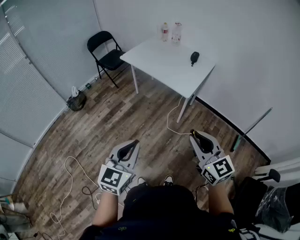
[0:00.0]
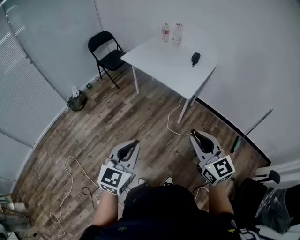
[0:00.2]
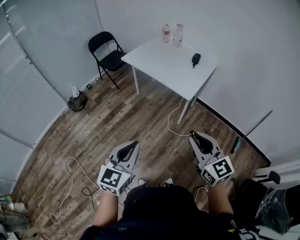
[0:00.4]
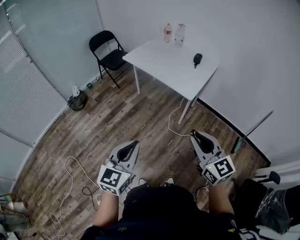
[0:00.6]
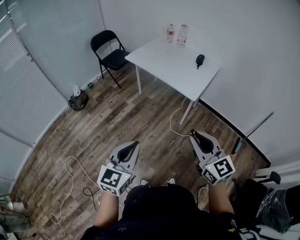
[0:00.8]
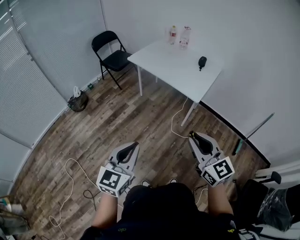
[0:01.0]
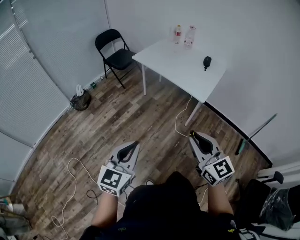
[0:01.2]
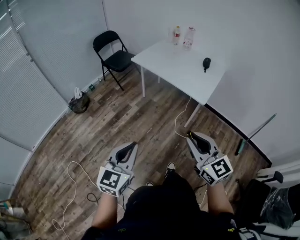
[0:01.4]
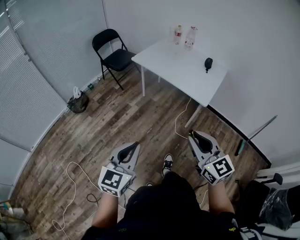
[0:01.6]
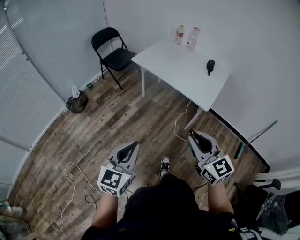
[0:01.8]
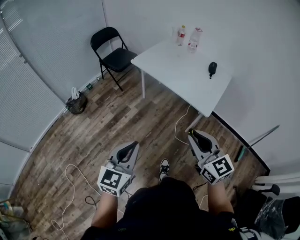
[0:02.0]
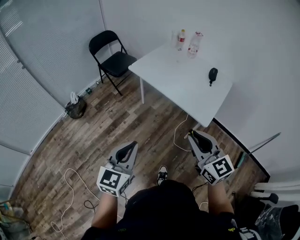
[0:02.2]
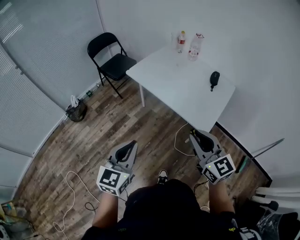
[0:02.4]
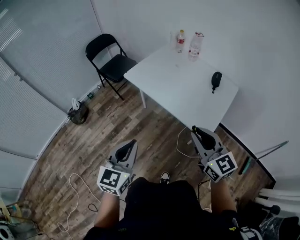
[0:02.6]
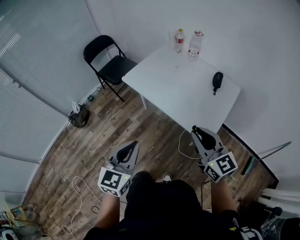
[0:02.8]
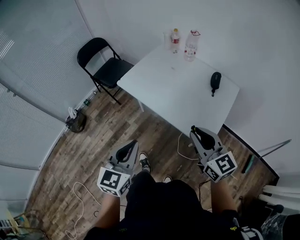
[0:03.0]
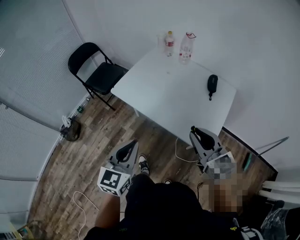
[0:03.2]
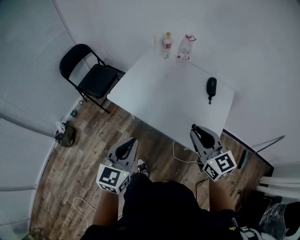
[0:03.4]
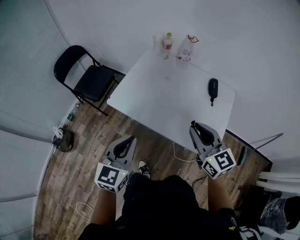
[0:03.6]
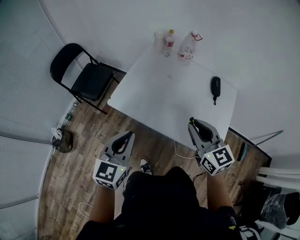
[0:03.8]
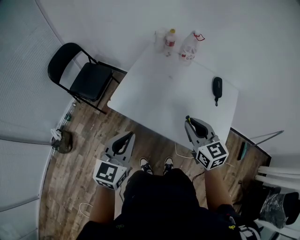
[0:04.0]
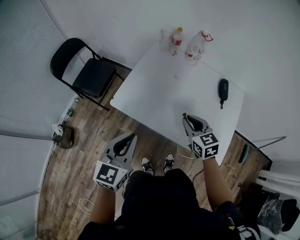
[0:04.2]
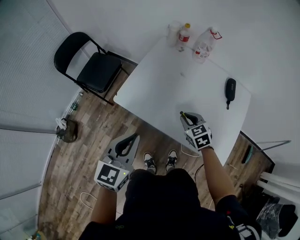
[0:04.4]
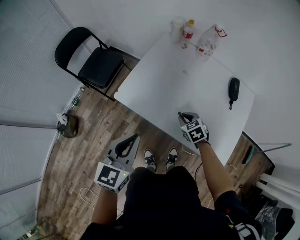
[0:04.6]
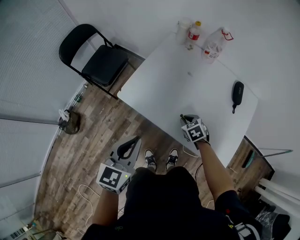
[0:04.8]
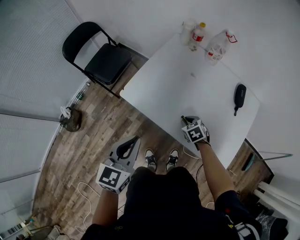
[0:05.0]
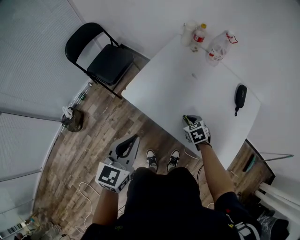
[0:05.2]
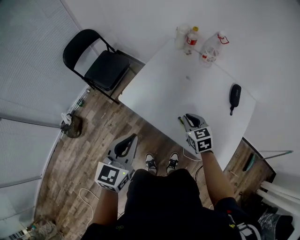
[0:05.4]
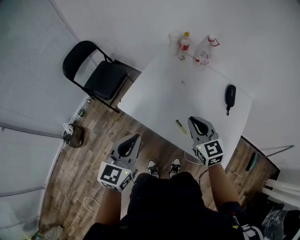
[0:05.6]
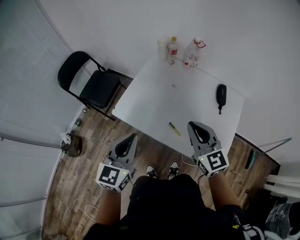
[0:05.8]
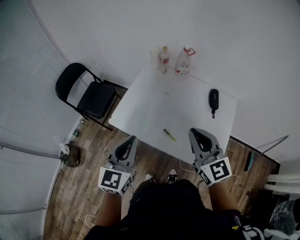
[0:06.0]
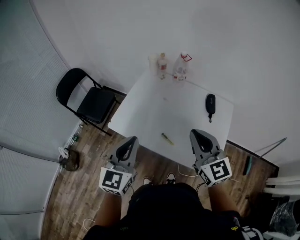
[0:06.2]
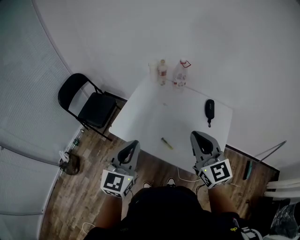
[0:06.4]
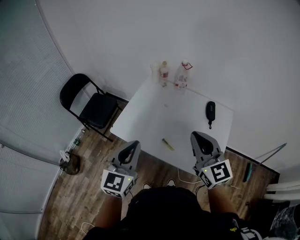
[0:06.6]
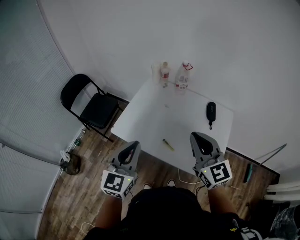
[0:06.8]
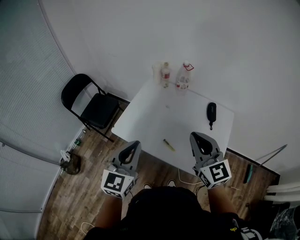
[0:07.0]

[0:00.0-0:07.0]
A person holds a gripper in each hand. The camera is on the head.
0:00.0 to 0:01.4: The two grippers go about 15 cm to the left.
0:01.4 to 0:02.8: The pair of grippers is taken forward, approximately 40 cm.
0:02.8 to 0:04.2: The right gripper moves forward and downward, roughly 35 cm, and changes its angle by about 30 degrees, while the left gripper is displaced forward by roughly 35 cm.
0:04.2 to 0:05.6: The right gripper moves roughly 20 cm downward and comes back.
0:05.6 to 0:07.0: The left gripper heads upward and to the right, covering roughly 10 cm, while the right gripper moves upward and backward, roughly 20 cm.

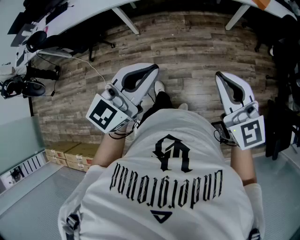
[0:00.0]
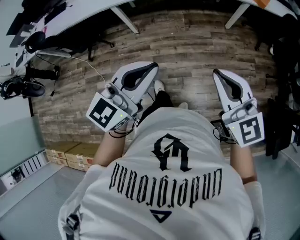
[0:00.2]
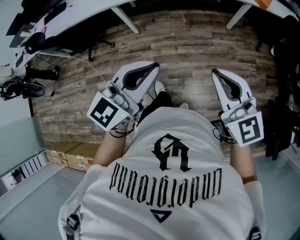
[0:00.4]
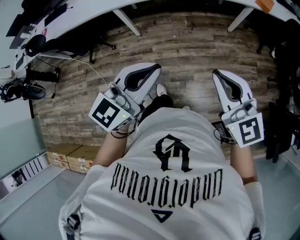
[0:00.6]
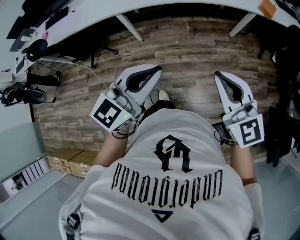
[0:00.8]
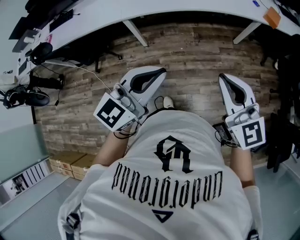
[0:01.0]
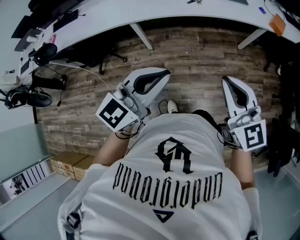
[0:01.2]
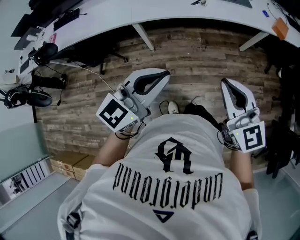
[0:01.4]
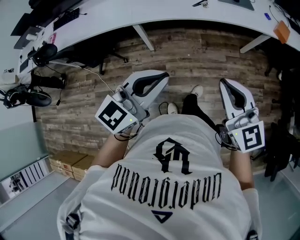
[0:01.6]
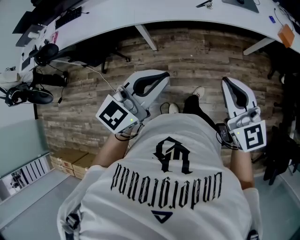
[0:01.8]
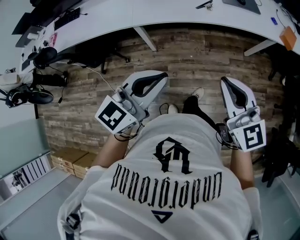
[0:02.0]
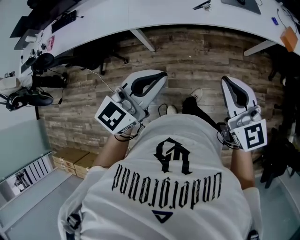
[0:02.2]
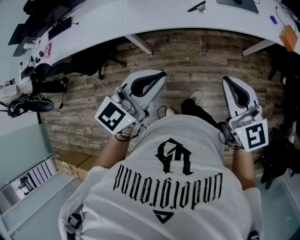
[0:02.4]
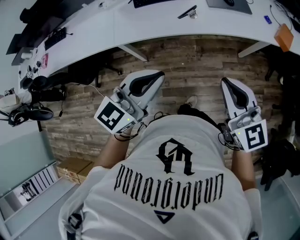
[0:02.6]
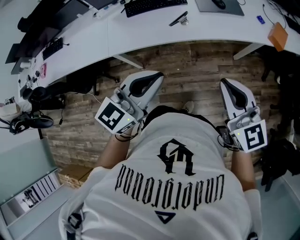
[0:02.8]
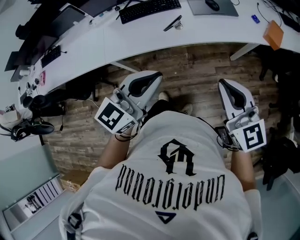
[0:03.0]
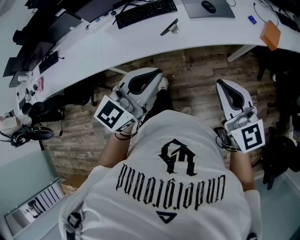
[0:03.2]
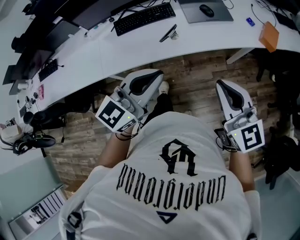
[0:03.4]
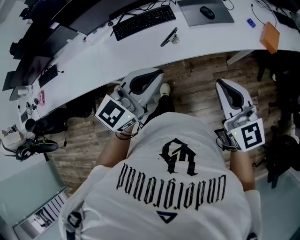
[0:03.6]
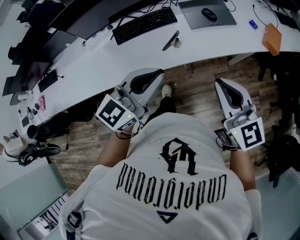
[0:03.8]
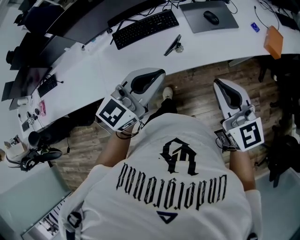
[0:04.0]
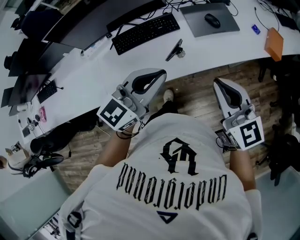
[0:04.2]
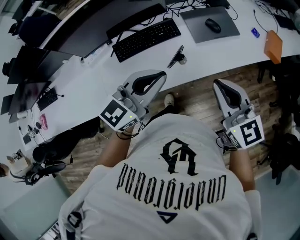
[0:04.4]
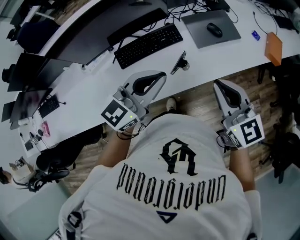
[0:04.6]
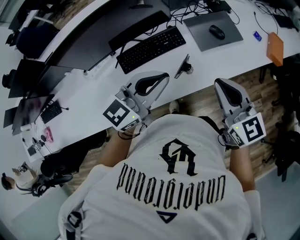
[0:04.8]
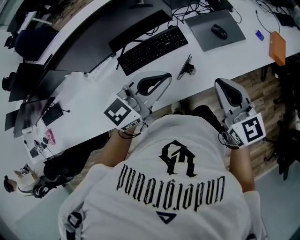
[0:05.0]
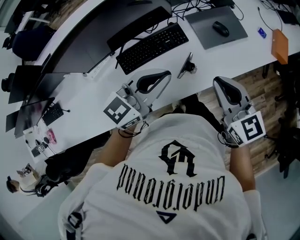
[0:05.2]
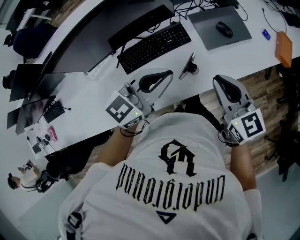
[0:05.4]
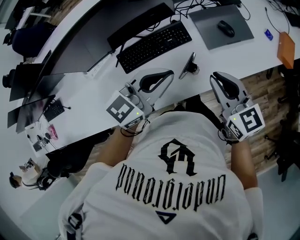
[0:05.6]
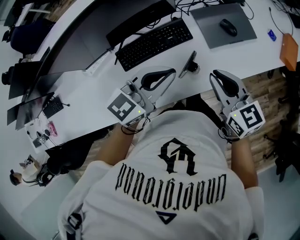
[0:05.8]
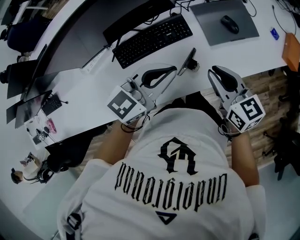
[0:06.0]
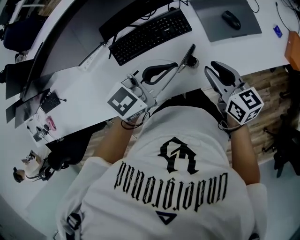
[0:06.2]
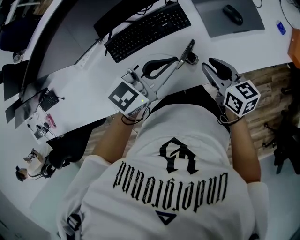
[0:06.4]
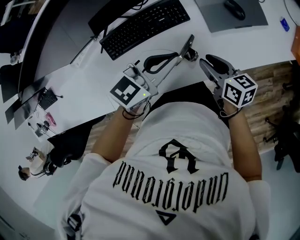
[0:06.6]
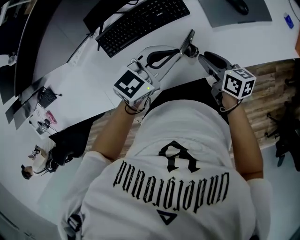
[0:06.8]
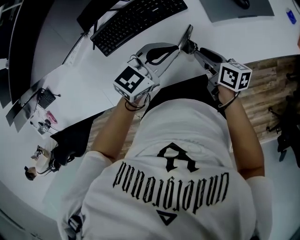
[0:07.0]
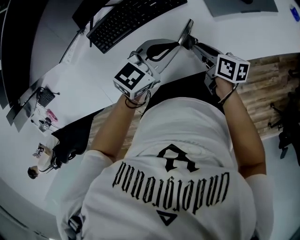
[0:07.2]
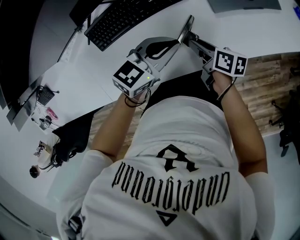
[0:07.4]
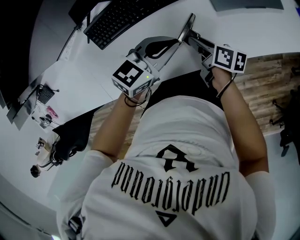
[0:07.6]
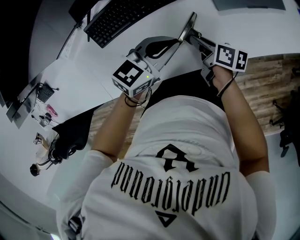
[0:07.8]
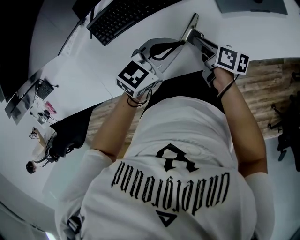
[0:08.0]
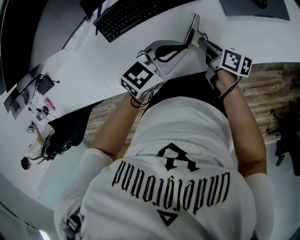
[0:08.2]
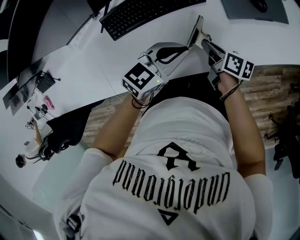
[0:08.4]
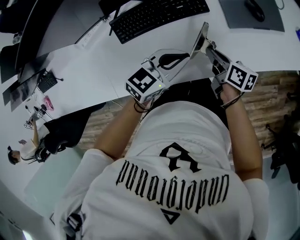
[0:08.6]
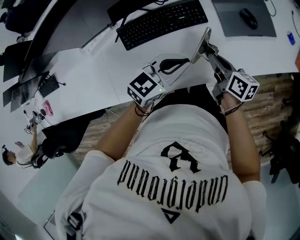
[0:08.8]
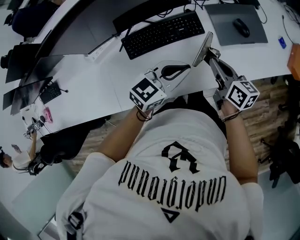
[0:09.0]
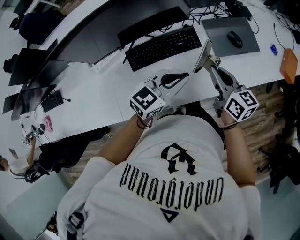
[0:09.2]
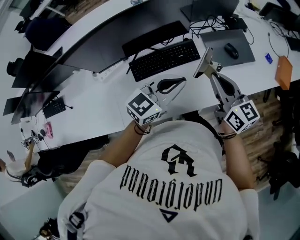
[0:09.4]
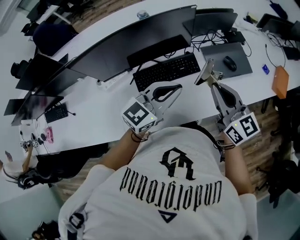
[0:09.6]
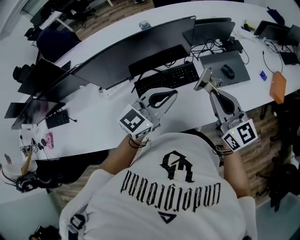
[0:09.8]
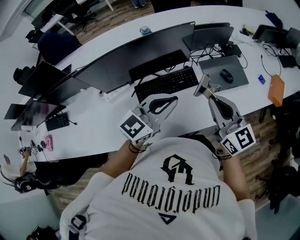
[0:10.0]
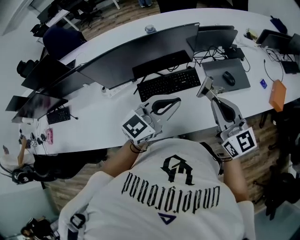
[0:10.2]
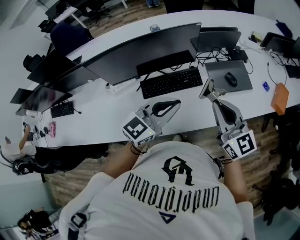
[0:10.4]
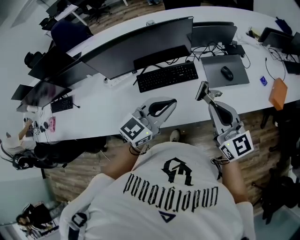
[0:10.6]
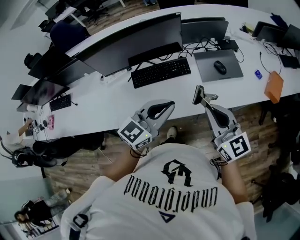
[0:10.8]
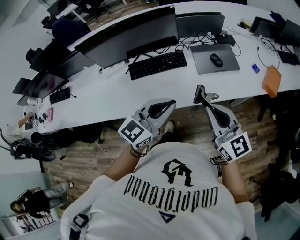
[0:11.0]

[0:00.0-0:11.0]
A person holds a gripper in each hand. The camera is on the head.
0:00.0 to 0:01.6: The two grippers go roughly 25 cm forward and to the left.
0:01.6 to 0:03.2: Both grippers move forward and to the right, some 30 cm.
0:03.2 to 0:04.8: The two grippers go about 30 cm forward and to the left.
0:04.8 to 0:06.2: The right gripper is displaced downward and forward by roughly 20 cm, and swivels some 30 degrees, while the left gripper is displaced forward and downward by roughly 15 cm.
0:06.2 to 0:07.8: The grippers both shift downward by approximately 20 cm. The right gripper twists some 40 degrees clockwise, seen from behind.
0:07.8 to 0:09.4: The right gripper shifts approximately 35 cm upward, and twists roughly 50 degrees counterclockwise, seen from behind, while the left gripper travels upward by about 25 cm, and rotates roughly 30 degrees.
0:09.4 to 0:11.0: The grippers both shift backward and to the right by some 25 cm. The right gripper turns by some 20 degrees.

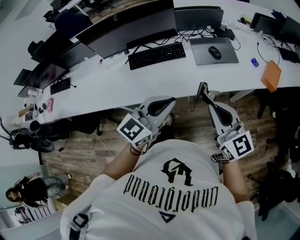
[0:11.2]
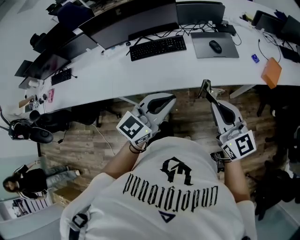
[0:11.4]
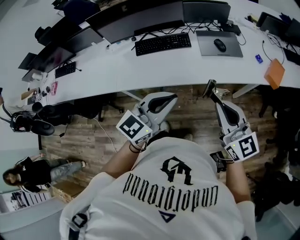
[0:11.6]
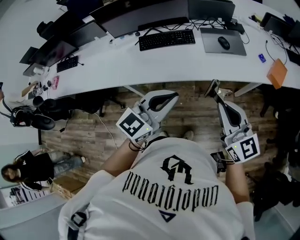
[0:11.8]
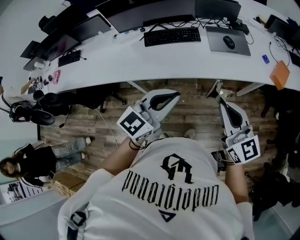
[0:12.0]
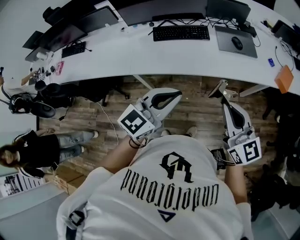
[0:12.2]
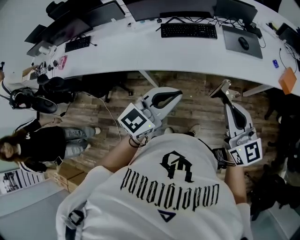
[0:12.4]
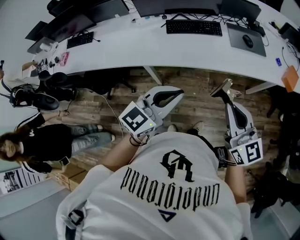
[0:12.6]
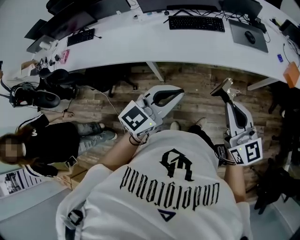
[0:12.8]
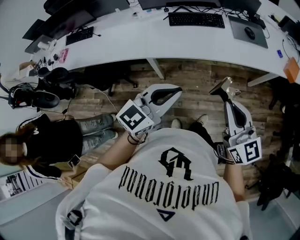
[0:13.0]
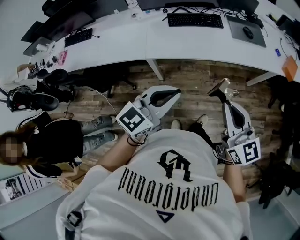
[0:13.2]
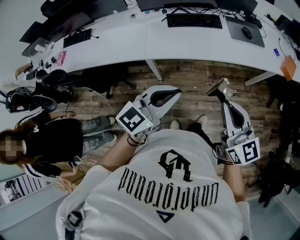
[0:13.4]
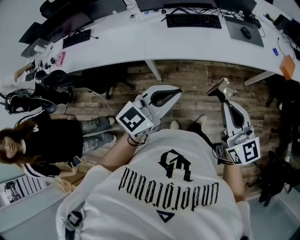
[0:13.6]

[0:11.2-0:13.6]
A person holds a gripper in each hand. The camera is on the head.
0:11.2 to 0:12.4: The grippers both shift backward and to the left by roughly 20 cm.
0:12.4 to 0:13.6: The two grippers go roughly 15 cm to the left and backward.

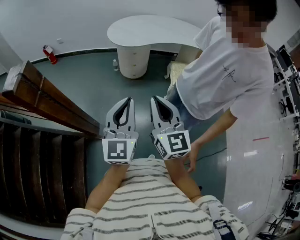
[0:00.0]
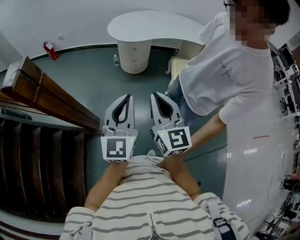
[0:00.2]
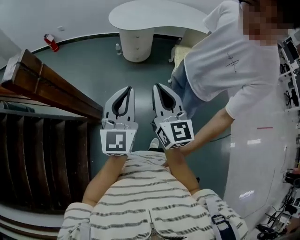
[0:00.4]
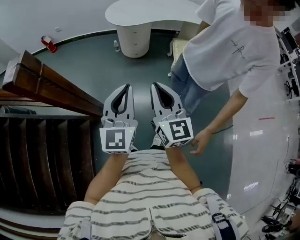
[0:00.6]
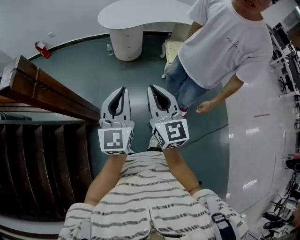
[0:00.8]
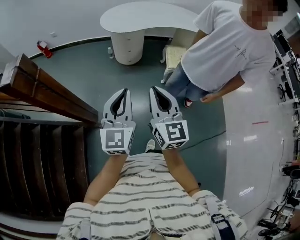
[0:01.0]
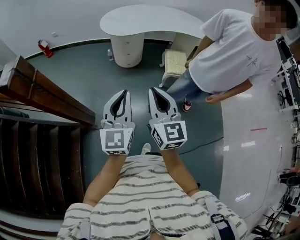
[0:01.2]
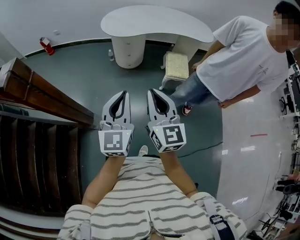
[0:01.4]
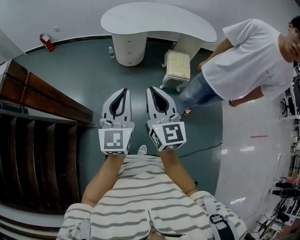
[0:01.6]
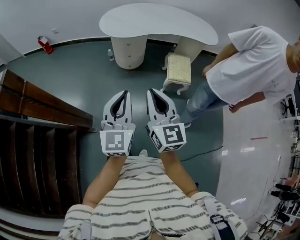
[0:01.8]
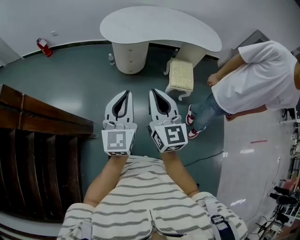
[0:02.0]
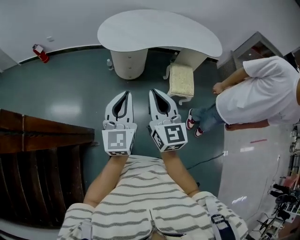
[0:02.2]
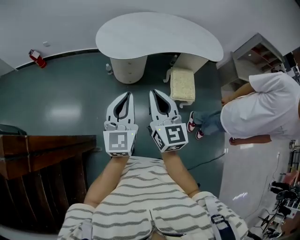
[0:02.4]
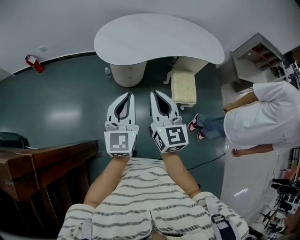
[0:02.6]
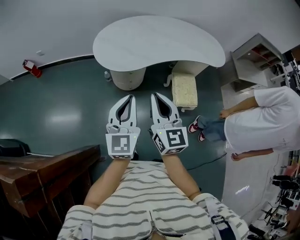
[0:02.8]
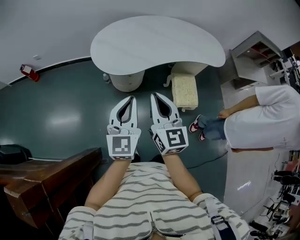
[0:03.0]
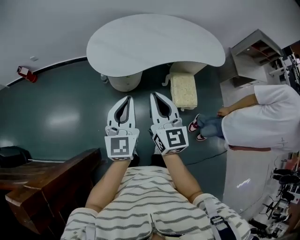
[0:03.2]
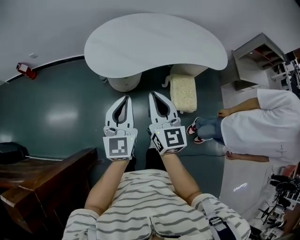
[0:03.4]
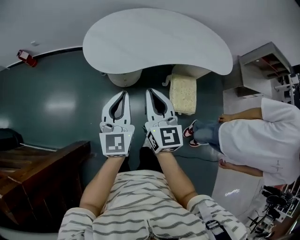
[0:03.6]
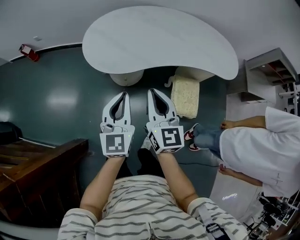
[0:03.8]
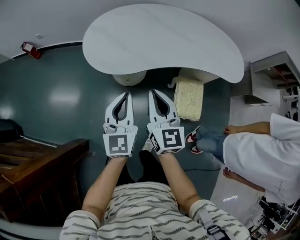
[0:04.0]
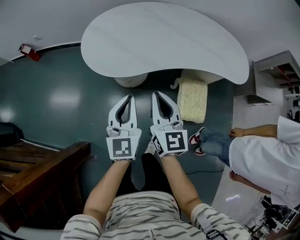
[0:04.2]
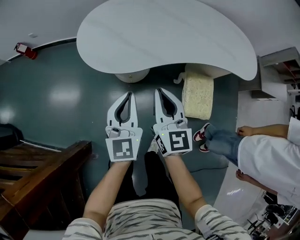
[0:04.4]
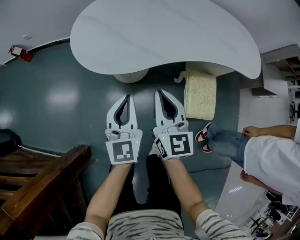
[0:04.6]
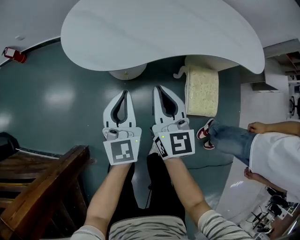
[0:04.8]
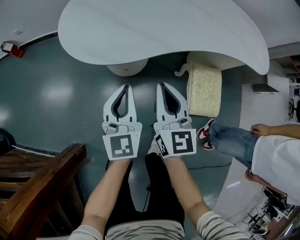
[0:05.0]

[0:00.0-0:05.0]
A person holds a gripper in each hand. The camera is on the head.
0:00.0 to 0:01.6: Both grippers move to the right, about 5 cm.
0:01.6 to 0:03.4: The pair of grippers is taken forward, roughly 40 cm.
0:03.4 to 0:05.0: Both grippers move downward and forward, some 30 cm.
